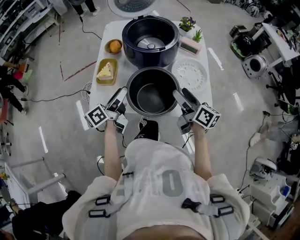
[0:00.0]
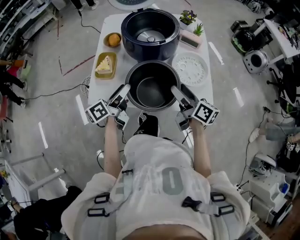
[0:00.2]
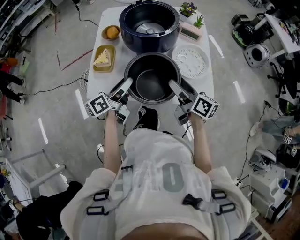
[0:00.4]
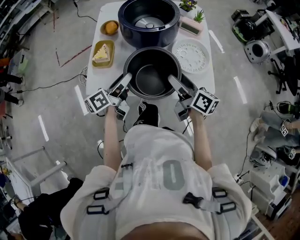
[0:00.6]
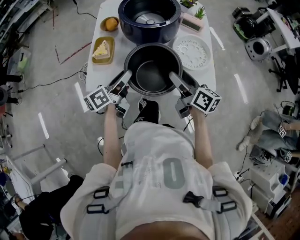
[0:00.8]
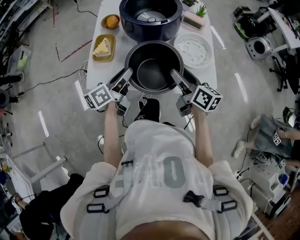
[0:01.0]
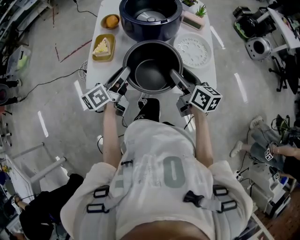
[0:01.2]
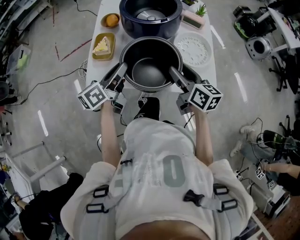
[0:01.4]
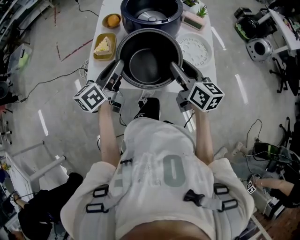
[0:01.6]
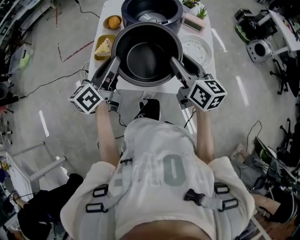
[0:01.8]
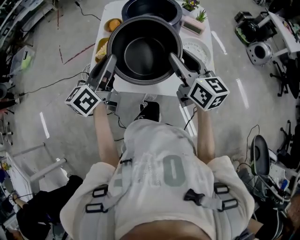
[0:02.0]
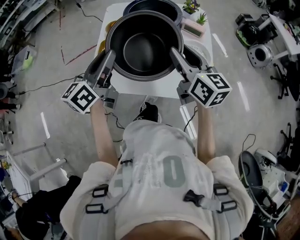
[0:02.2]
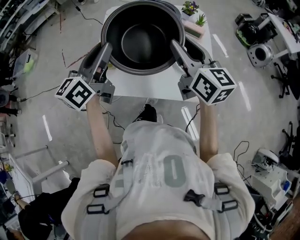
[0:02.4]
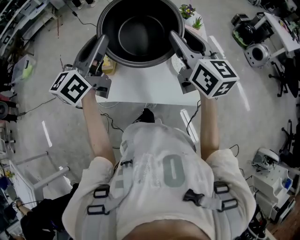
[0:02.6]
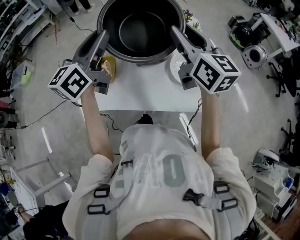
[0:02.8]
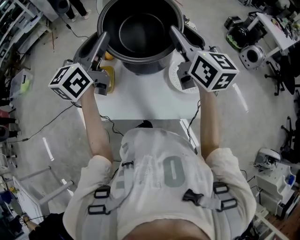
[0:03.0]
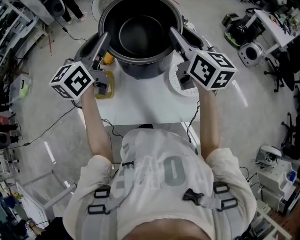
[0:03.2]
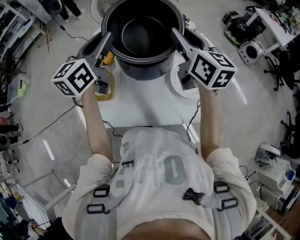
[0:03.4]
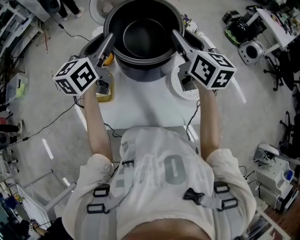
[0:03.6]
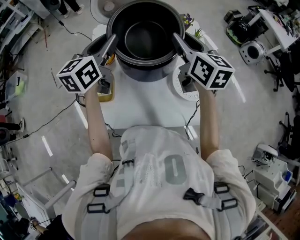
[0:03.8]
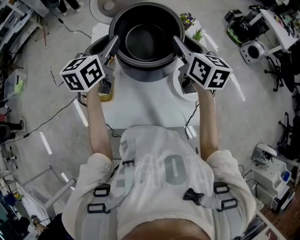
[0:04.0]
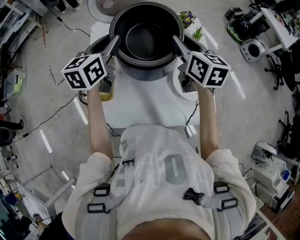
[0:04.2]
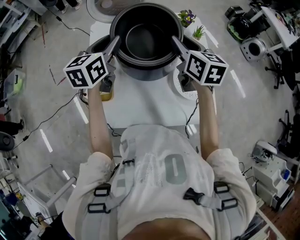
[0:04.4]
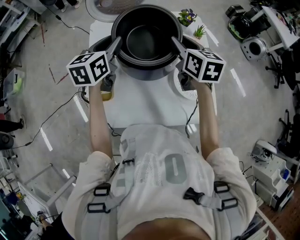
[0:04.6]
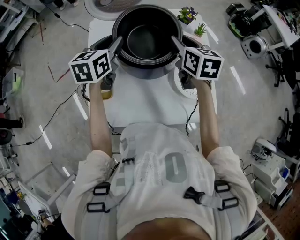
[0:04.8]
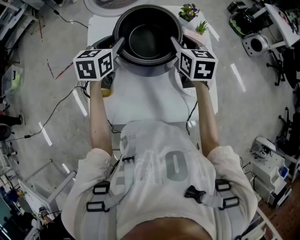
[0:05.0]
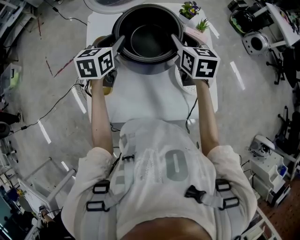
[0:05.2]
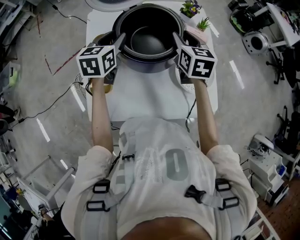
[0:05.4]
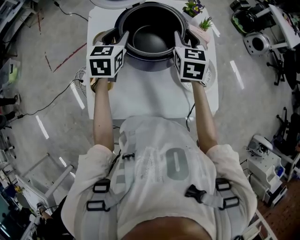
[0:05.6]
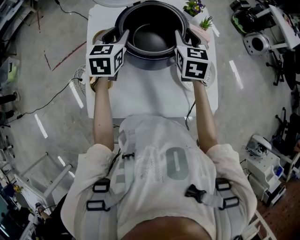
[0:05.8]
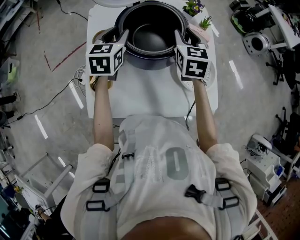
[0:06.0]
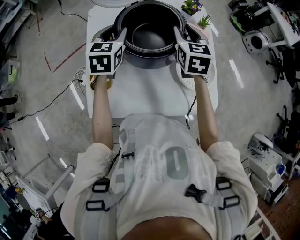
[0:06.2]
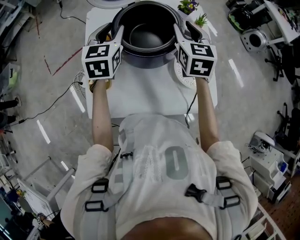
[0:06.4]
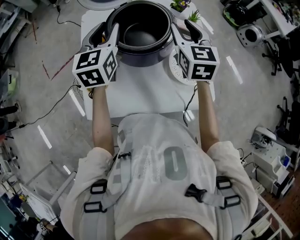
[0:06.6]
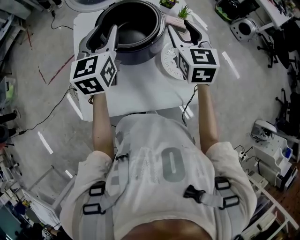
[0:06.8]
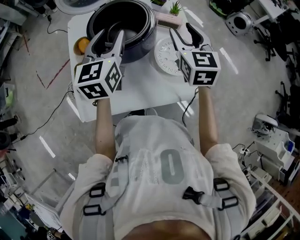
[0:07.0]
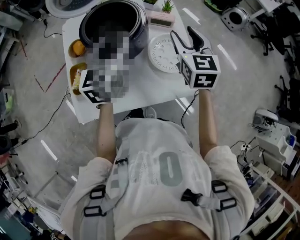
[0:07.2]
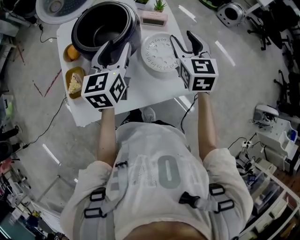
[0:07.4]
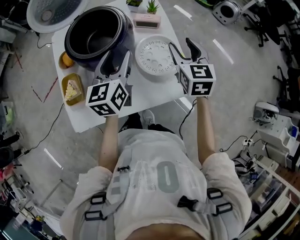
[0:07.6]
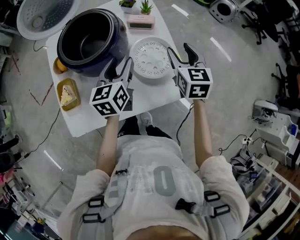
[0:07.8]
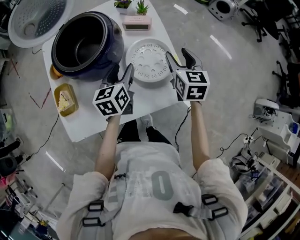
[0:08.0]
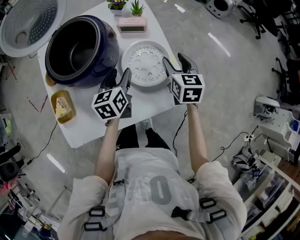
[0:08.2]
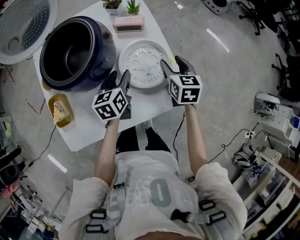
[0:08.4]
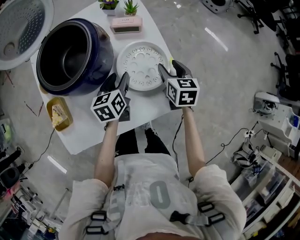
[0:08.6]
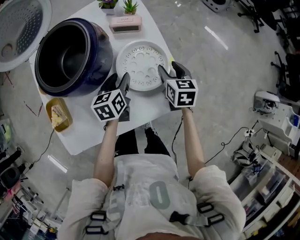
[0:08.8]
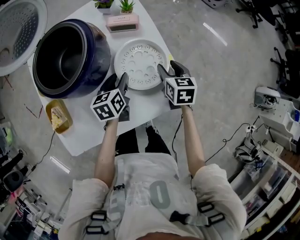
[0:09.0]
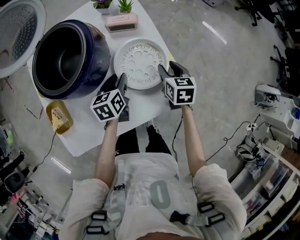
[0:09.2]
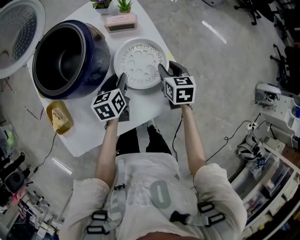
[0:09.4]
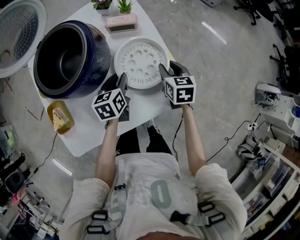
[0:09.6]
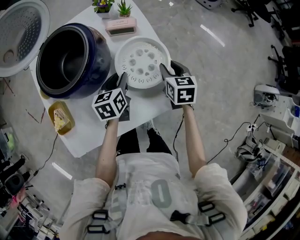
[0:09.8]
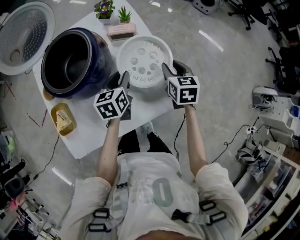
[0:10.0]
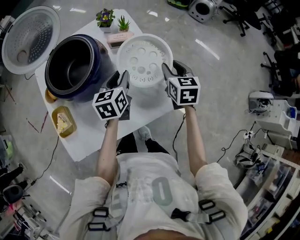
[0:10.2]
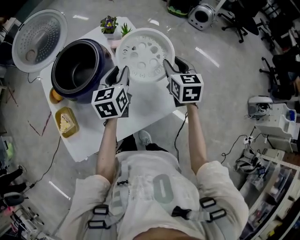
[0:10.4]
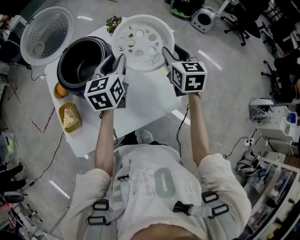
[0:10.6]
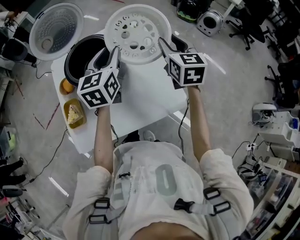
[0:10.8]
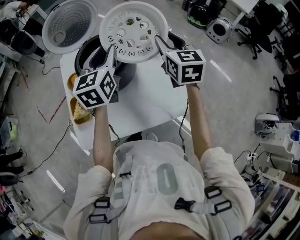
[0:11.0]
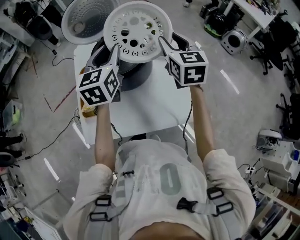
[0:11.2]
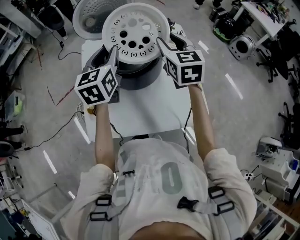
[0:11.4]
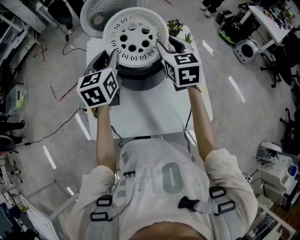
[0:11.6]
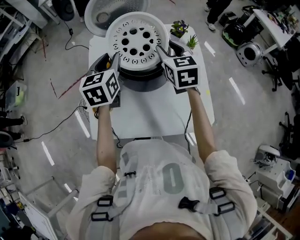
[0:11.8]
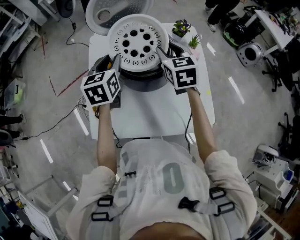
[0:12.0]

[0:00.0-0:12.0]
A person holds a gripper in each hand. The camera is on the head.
0:00.0 to 0:01.6: The left gripper closes its fingers. The right gripper closes its fingers.
0:01.6 to 0:03.0: The two grippers go some 25 cm upward and forward. The left gripper swivels some 30 degrees. Meanwhile the right gripper rotates approximately 20 degrees.
0:03.0 to 0:04.4: The right gripper shifts some 15 cm downward and forward, and turns by approximately 20 degrees. Meanwhile the left gripper goes roughly 20 cm forward and downward, and changes its angle by about 20 degrees.
0:04.4 to 0:06.0: Both grippers travel together downward, roughly 5 cm. The right gripper changes its angle by roughly 20 degrees.
0:06.0 to 0:07.6: Both grippers move to the right and backward, some 25 cm. The left gripper swivels some 20 degrees.
0:07.6 to 0:09.0: Both grippers travel together downward, some 20 cm. The left gripper turns by about 30 degrees. Meanwhile the right gripper swivels approximately 20 degrees.
0:09.0 to 0:10.4: The two grippers go approximately 15 cm upward. The left gripper turns by some 20 degrees.
0:10.4 to 0:12.0: The right gripper shifts by roughly 35 cm, and turns by approximately 30 degrees; the left gripper shifts by approximately 30 cm, and changes its angle by about 30 degrees.

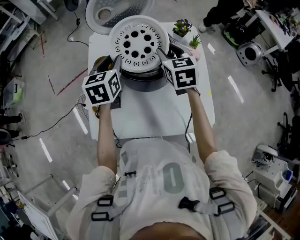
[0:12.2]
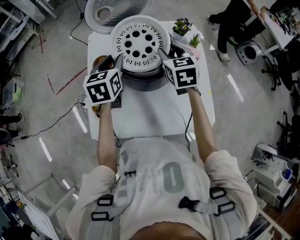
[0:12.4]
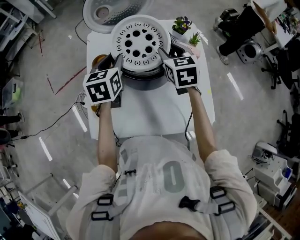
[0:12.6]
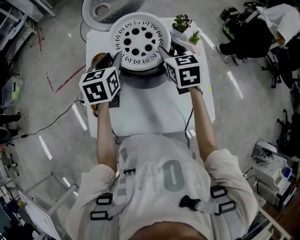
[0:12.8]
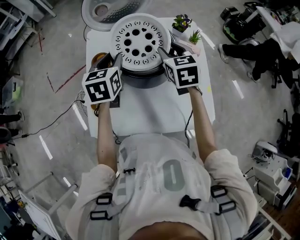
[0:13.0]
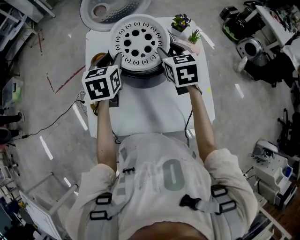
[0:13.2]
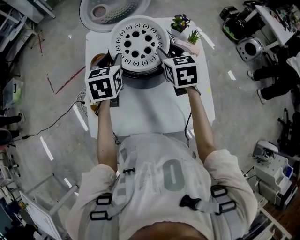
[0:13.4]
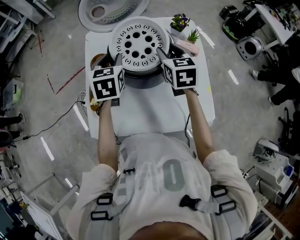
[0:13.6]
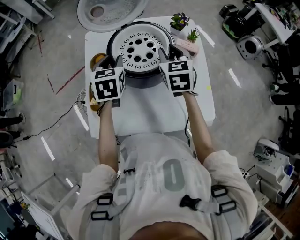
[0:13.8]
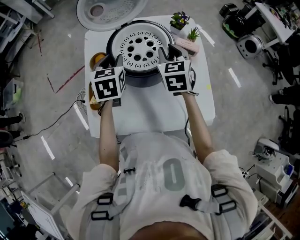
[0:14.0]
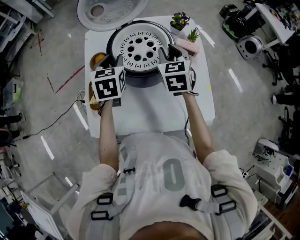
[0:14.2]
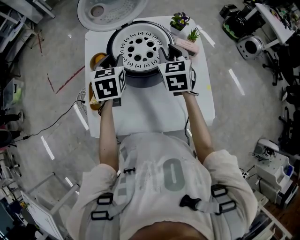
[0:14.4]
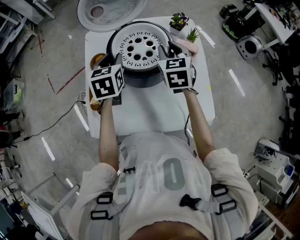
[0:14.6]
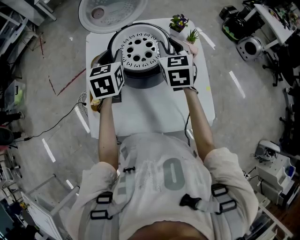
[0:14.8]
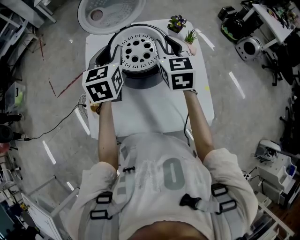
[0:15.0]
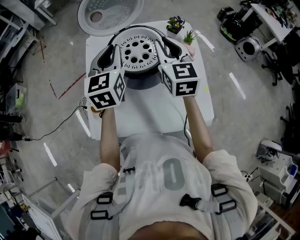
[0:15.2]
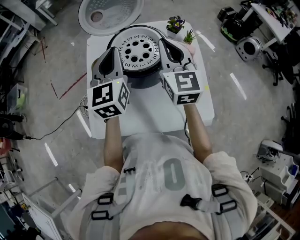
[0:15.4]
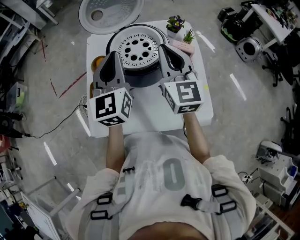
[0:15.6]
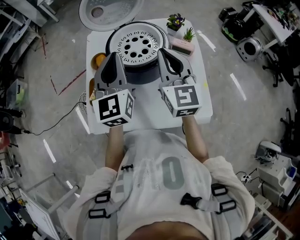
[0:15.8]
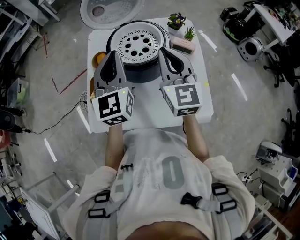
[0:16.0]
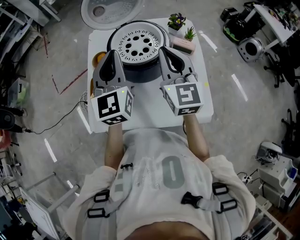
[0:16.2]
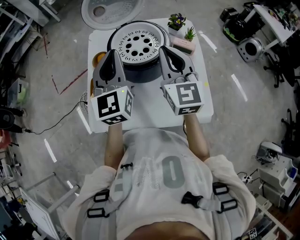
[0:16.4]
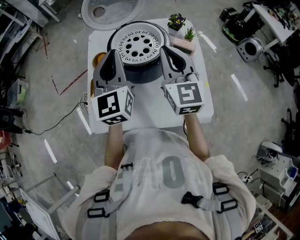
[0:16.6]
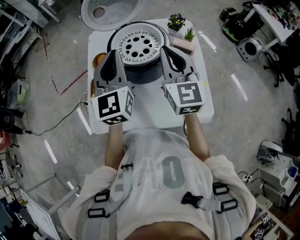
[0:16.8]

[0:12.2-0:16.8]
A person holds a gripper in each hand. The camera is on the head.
0:12.2 to 0:13.8: The grippers make only small movements.
0:13.8 to 0:15.2: The two grippers go some 10 cm upward. The left gripper turns by some 20 degrees.
0:15.2 to 0:16.8: The two grippers go about 5 cm backward.

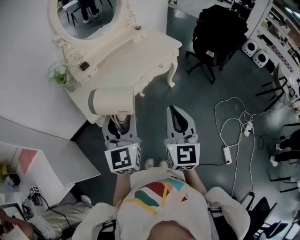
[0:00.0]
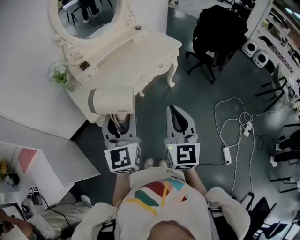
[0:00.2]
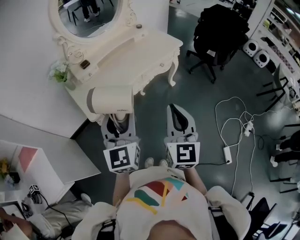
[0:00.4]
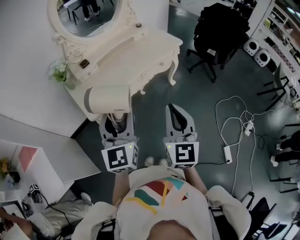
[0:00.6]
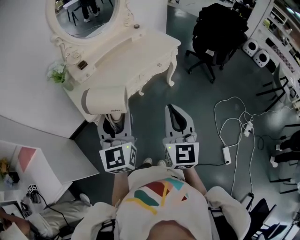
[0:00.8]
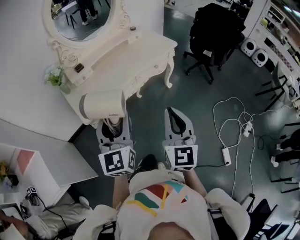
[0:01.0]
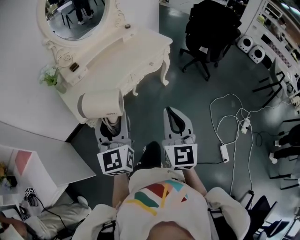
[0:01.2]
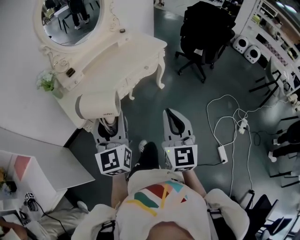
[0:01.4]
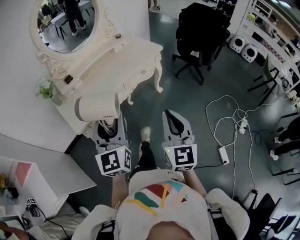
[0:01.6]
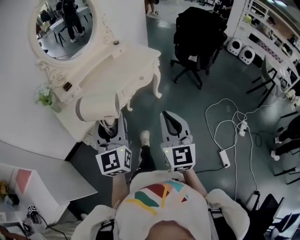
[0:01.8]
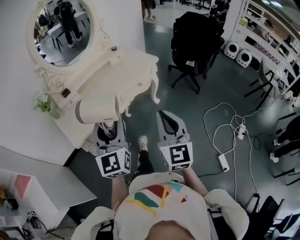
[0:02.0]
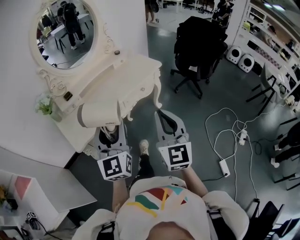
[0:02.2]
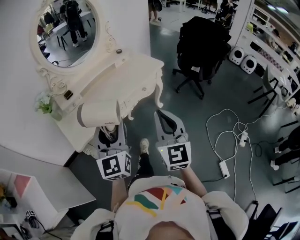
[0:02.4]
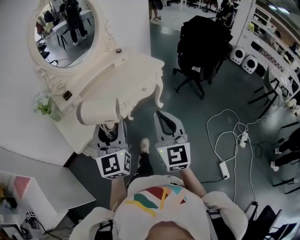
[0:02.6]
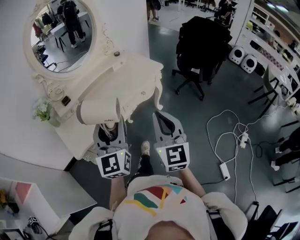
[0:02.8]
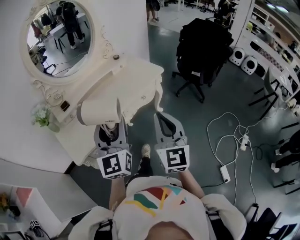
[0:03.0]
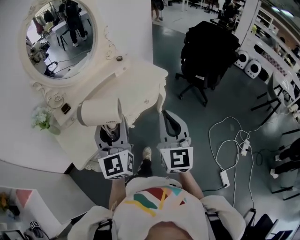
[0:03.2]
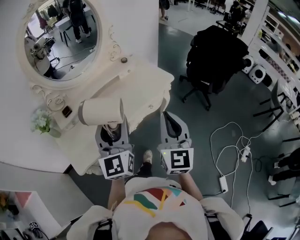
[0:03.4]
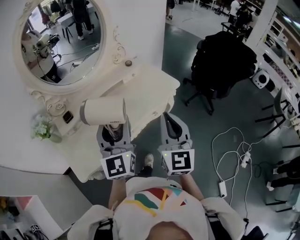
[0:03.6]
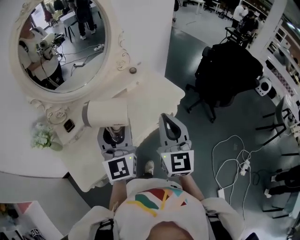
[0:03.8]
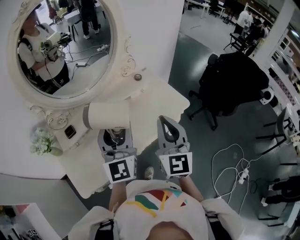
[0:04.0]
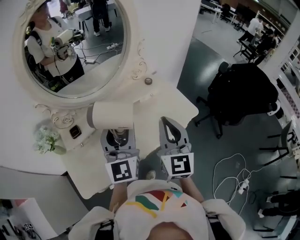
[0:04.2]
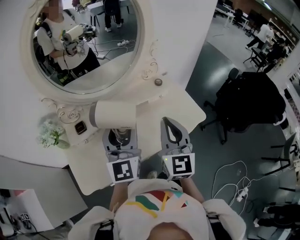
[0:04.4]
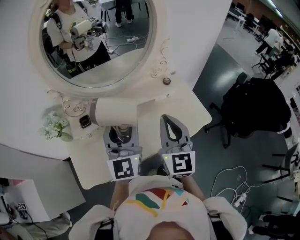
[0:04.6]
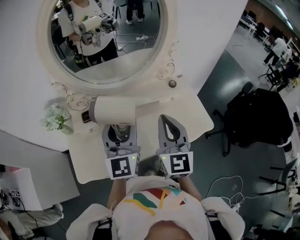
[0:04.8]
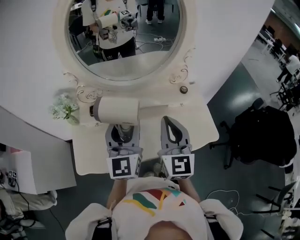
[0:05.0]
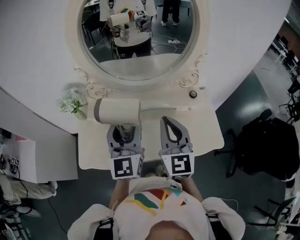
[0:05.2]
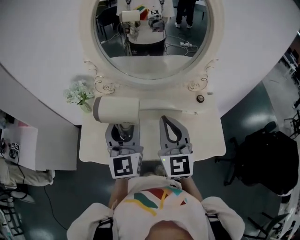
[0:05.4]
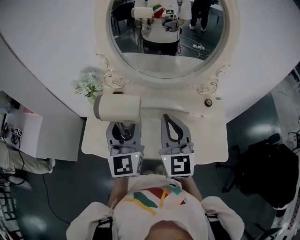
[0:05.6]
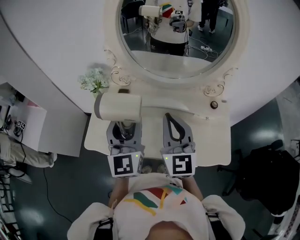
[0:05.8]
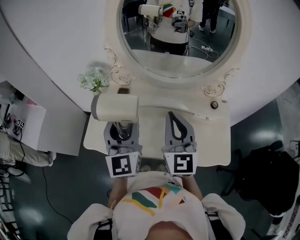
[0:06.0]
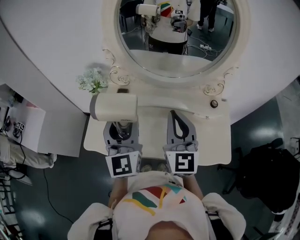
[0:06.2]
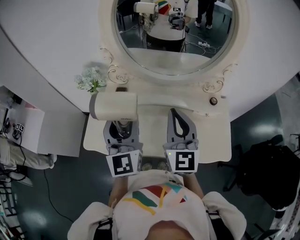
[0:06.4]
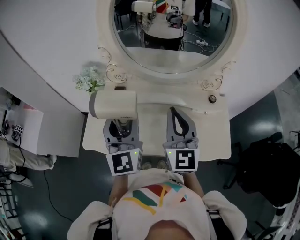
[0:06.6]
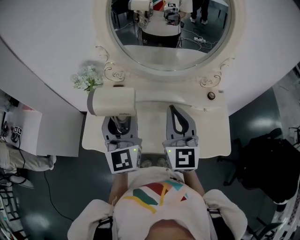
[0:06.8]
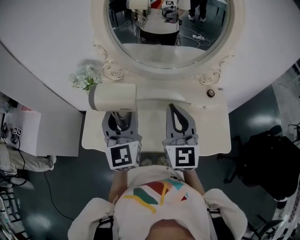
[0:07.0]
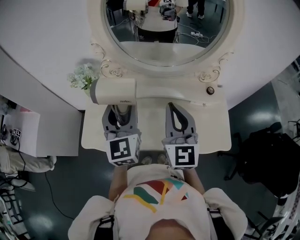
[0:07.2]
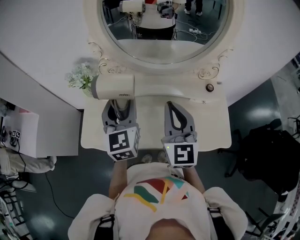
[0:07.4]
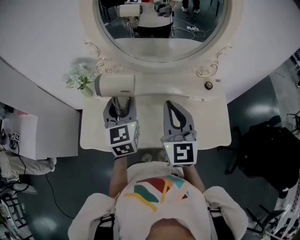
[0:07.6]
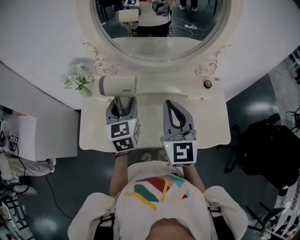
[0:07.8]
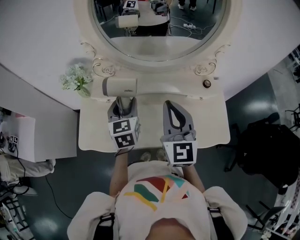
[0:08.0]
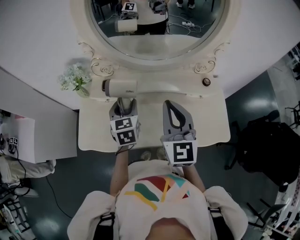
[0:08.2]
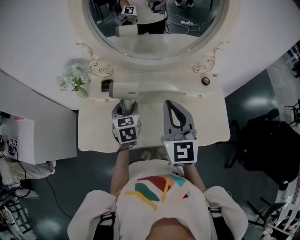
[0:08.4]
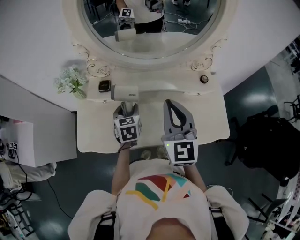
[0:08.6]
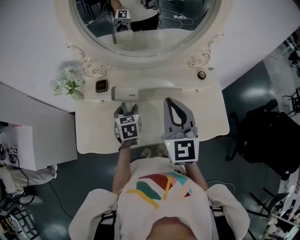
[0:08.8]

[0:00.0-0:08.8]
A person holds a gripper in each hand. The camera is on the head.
0:00.0 to 0:01.4: The right gripper moves to the right, approximately 5 cm.
0:01.4 to 0:03.0: The two grippers go some 15 cm forward.
0:03.0 to 0:04.4: The grippers both shift forward by roughly 35 cm.
0:04.4 to 0:05.8: The right gripper shifts by about 15 cm, and rotates roughly 40 degrees; the left gripper changes place by roughly 10 cm, and turns by approximately 40 degrees.
0:05.8 to 0:07.4: The left gripper goes roughly 5 cm forward.
0:07.4 to 0:08.8: The left gripper shifts approximately 25 cm downward, and angles its fingers downward, by about 40 degrees.
